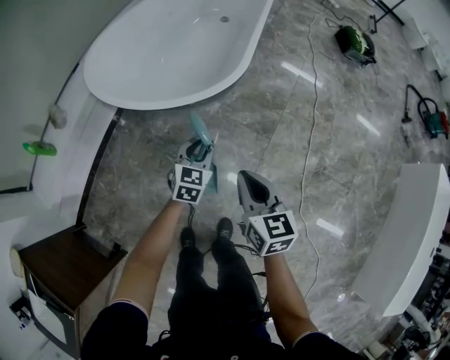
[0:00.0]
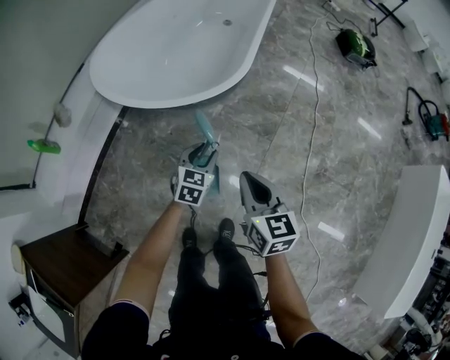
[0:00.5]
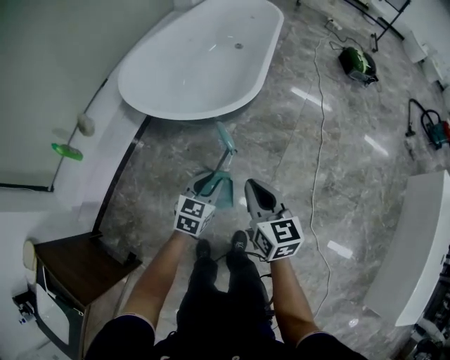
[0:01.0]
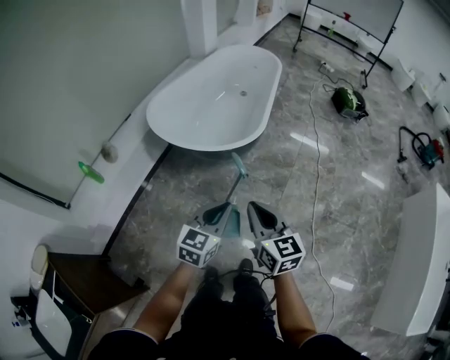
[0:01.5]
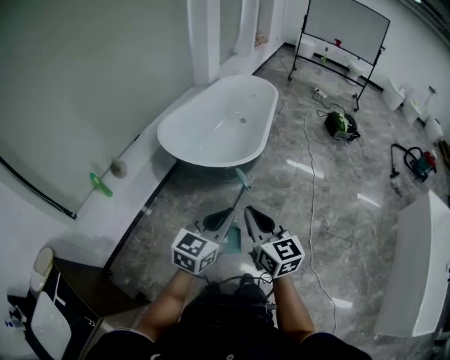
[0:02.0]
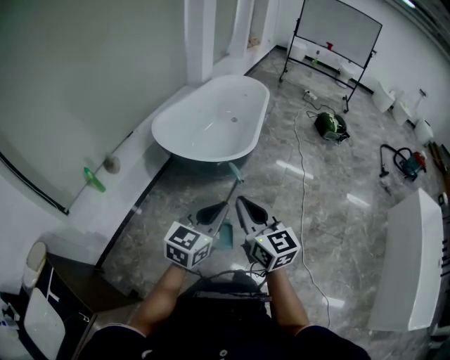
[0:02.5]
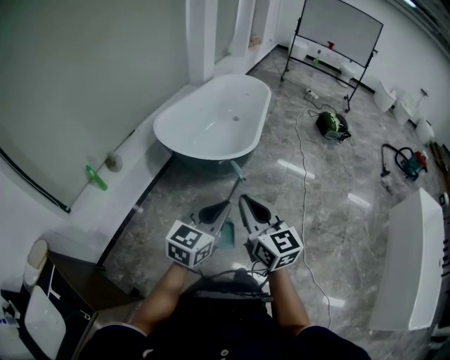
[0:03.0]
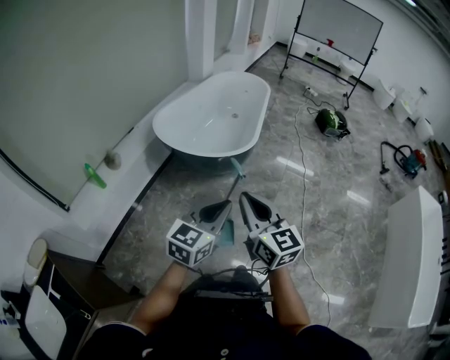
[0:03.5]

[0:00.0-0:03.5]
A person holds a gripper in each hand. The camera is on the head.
0:00.0 to 0:02.0: The left gripper is displaced upward and backward by approximately 50 cm, and swivels approximately 30 degrees; the right gripper shifts some 35 cm upward, backward and to the left, and rotates approximately 20 degrees.
0:02.0 to 0:03.5: The right gripper changes place by some 5 cm.

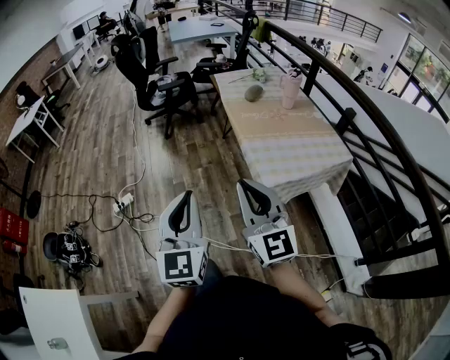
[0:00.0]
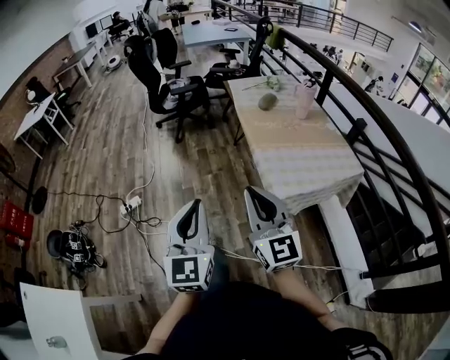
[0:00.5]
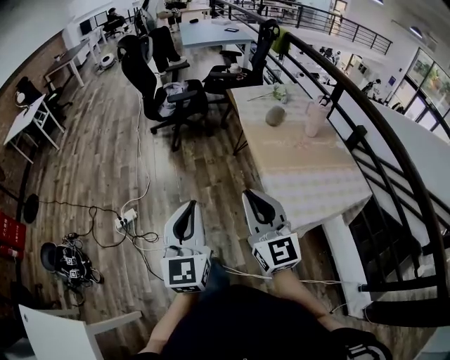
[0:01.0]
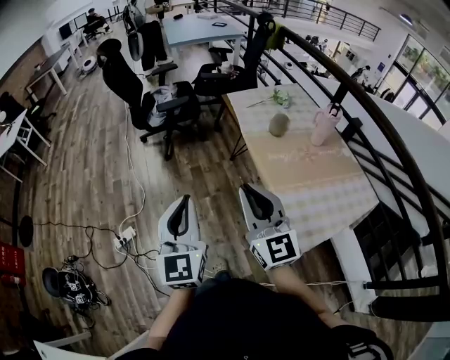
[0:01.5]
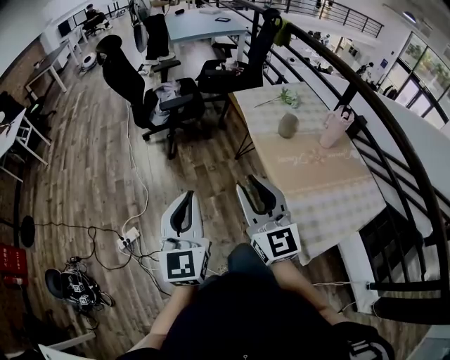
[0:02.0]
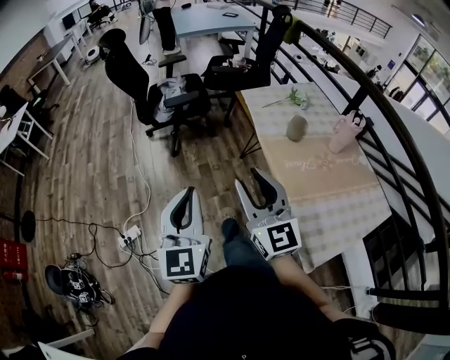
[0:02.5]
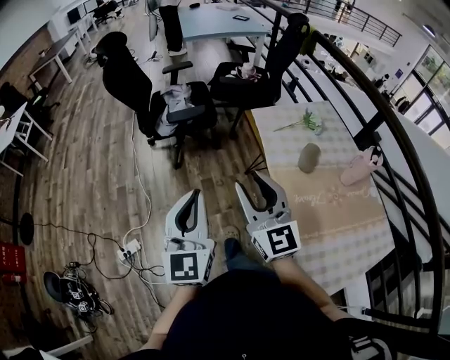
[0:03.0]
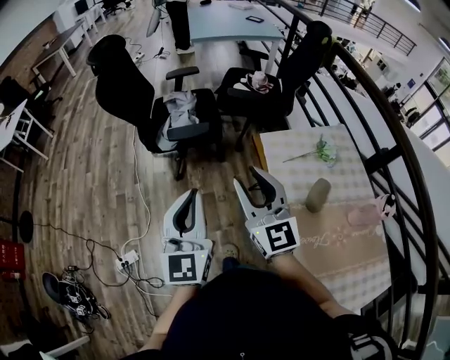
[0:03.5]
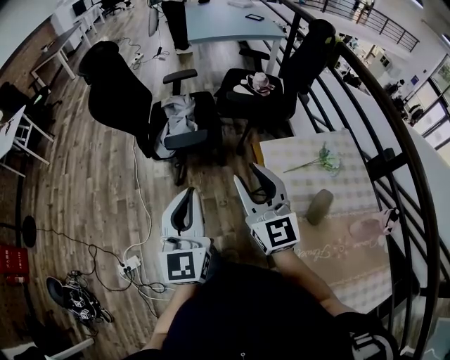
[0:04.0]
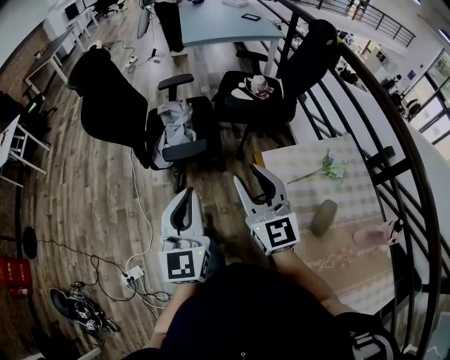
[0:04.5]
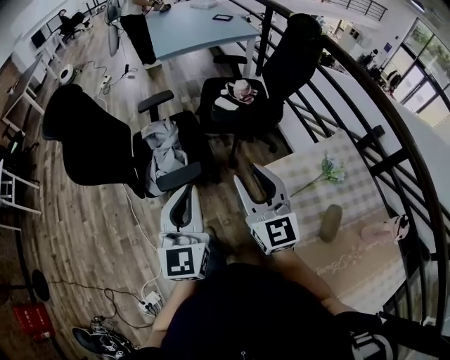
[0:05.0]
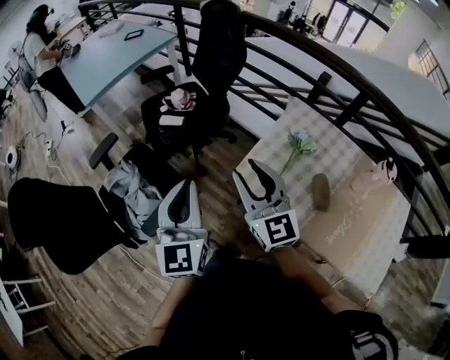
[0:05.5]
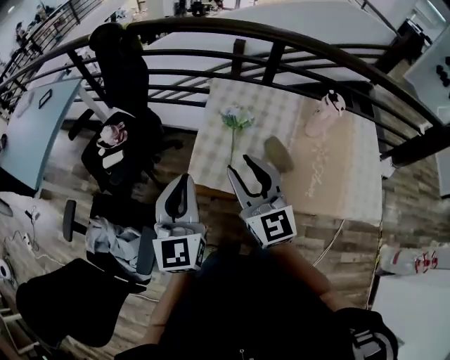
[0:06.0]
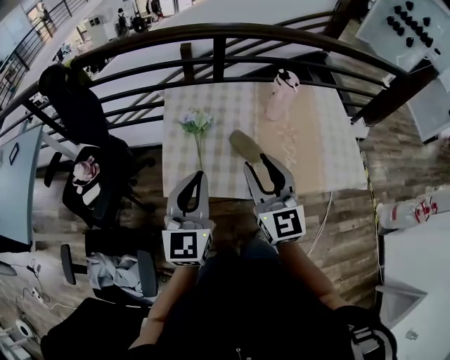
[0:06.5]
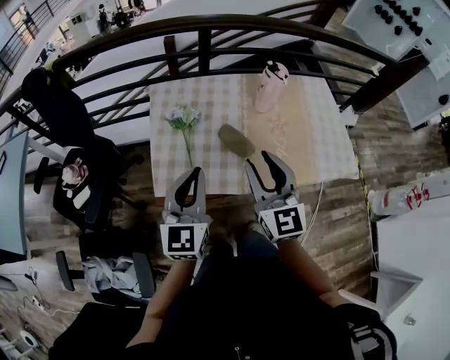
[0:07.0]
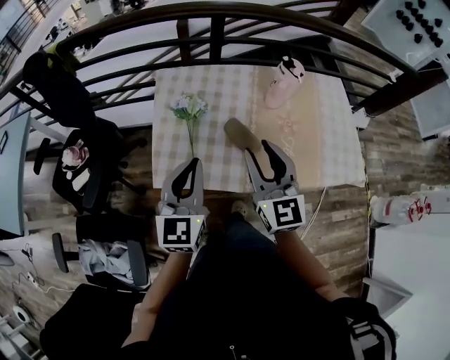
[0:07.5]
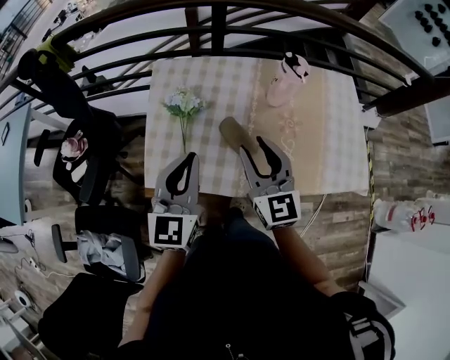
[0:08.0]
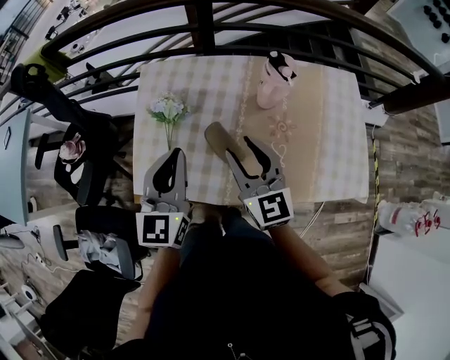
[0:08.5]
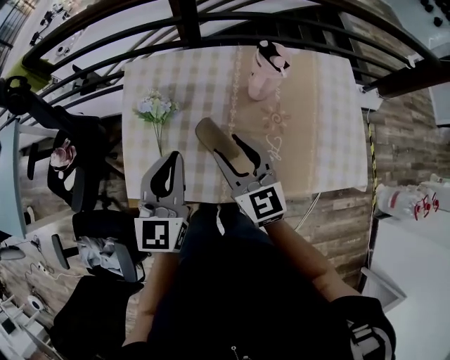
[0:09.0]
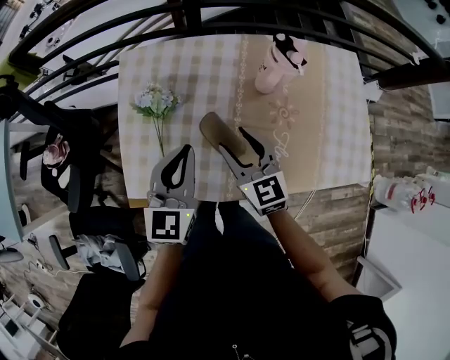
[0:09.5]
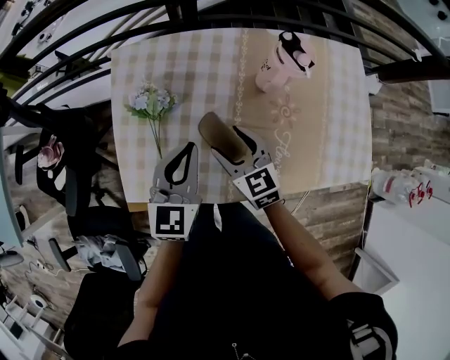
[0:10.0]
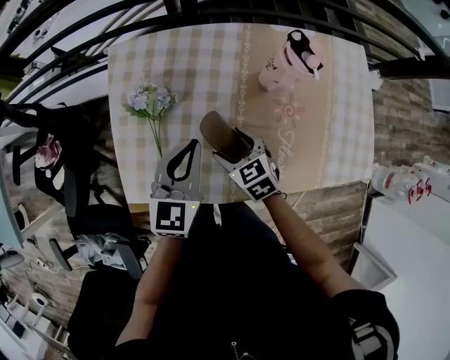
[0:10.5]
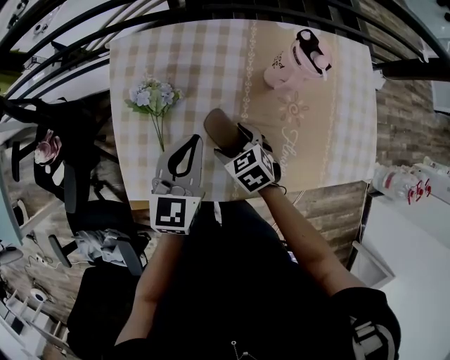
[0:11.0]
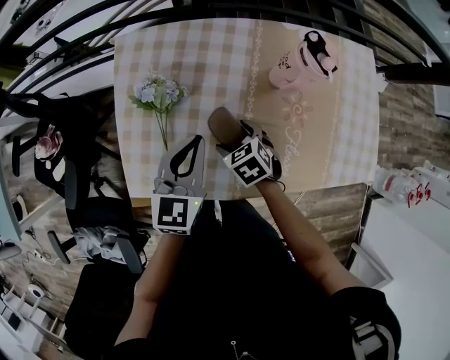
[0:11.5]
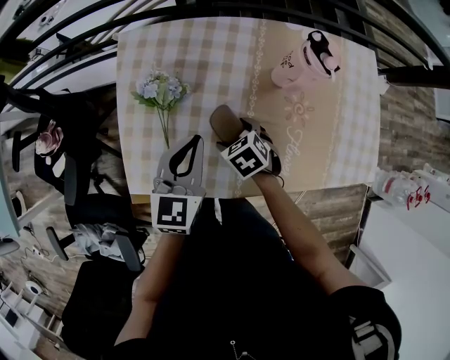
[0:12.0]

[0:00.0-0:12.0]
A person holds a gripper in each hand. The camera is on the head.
0:00.0 to 0:02.0: The two grippers go approximately 40 cm forward.
0:02.0 to 0:04.0: The pair of grippers is taken forward, roughly 40 cm.
0:04.0 to 0:06.0: The right gripper moves about 20 cm, and swivels roughly 70 degrees; the left gripper changes place by some 30 cm, and changes its angle by approximately 70 degrees.
0:06.0 to 0:08.0: The left gripper ends up about 20 cm from where it was, and rotates roughly 20 degrees; the right gripper shifts by roughly 20 cm.
0:08.0 to 0:10.0: The right gripper moves downward and forward, roughly 20 cm, rotates approximately 20 degrees, and opens. Meanwhile the left gripper is displaced downward, forward and to the right by some 15 cm.
0:10.0 to 0:12.0: The right gripper moves downward, approximately 10 cm, and points its fingers some 40 degrees further downward.

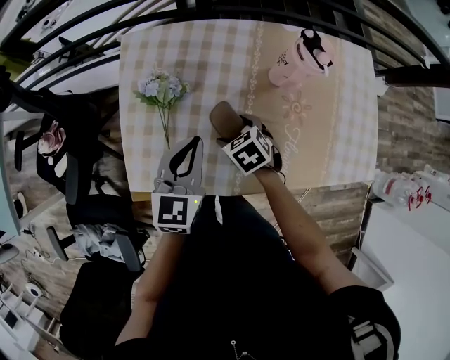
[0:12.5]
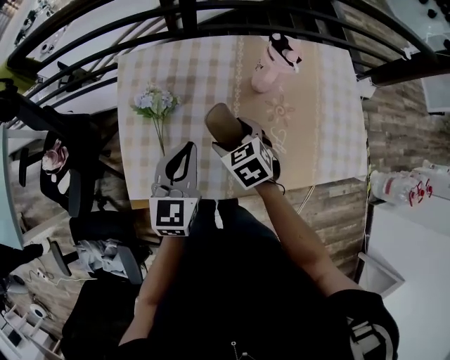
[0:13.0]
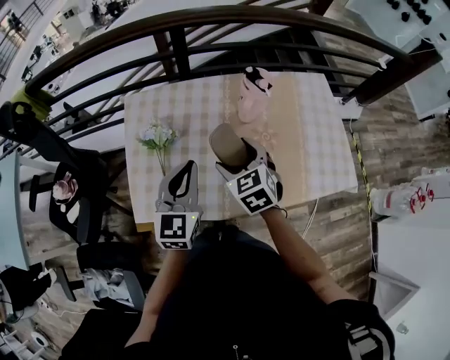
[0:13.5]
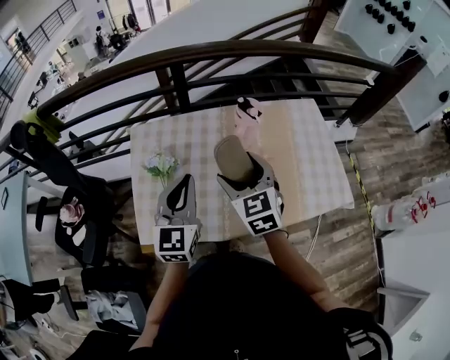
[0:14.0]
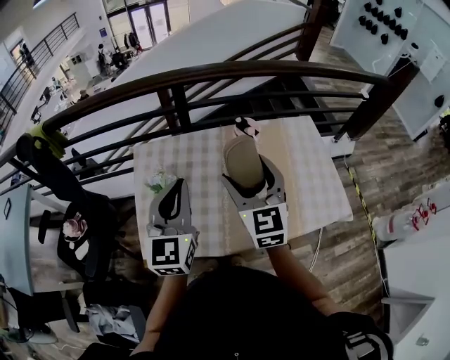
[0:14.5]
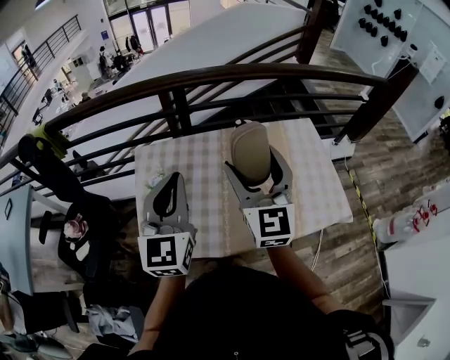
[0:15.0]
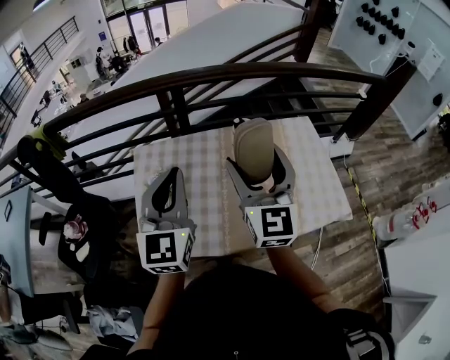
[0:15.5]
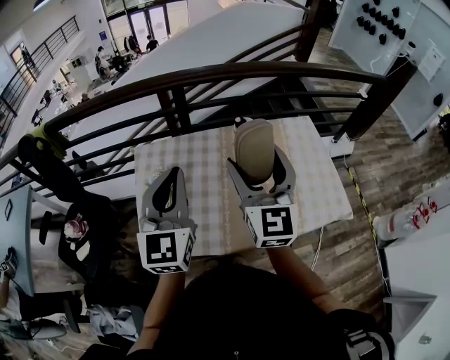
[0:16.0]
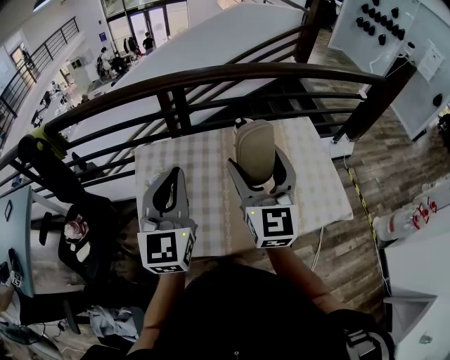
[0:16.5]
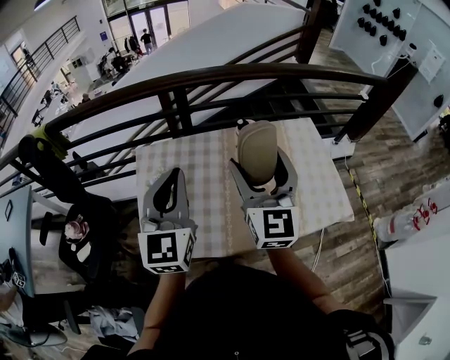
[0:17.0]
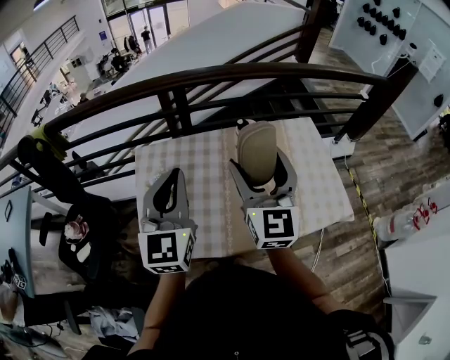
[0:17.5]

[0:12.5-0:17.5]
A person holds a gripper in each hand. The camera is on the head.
0:12.5 to 0:15.0: The right gripper goes roughly 40 cm upward, and points its fingers some 70 degrees further upward. The left gripper goes approximately 25 cm upward, and swivels approximately 30 degrees.
0:15.0 to 0:17.5: The grippers make only small movements.

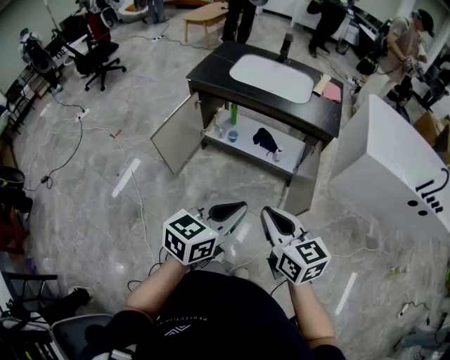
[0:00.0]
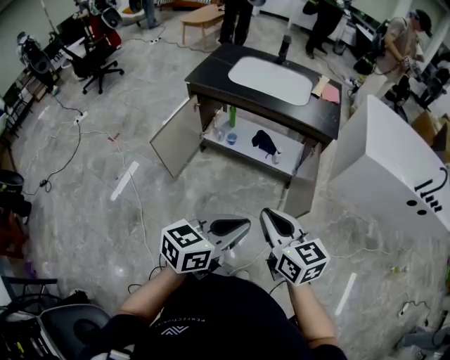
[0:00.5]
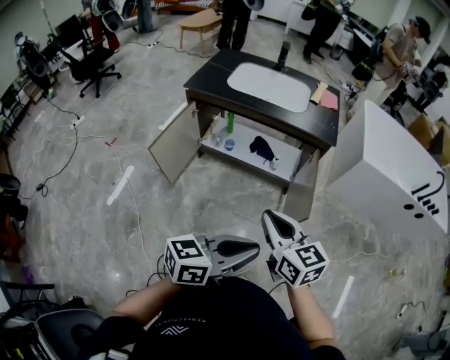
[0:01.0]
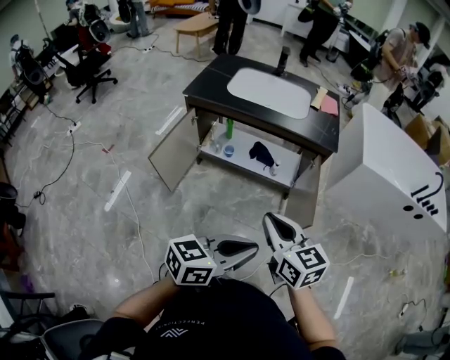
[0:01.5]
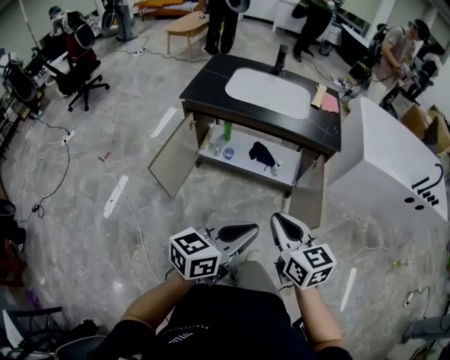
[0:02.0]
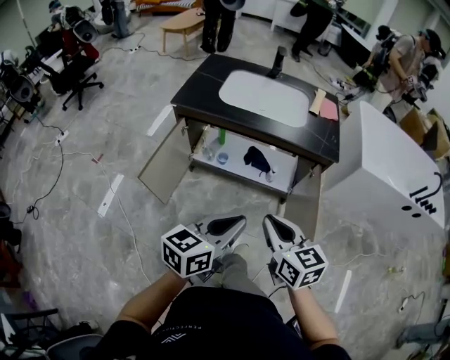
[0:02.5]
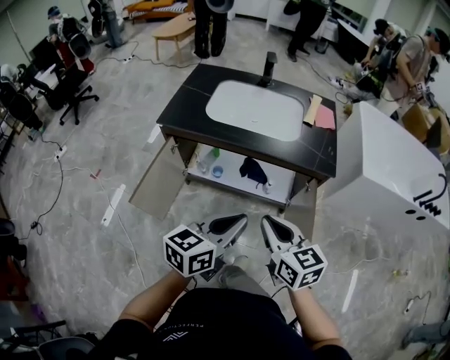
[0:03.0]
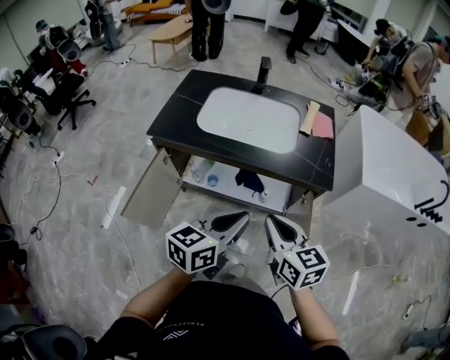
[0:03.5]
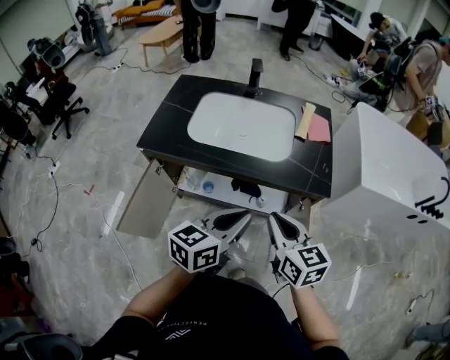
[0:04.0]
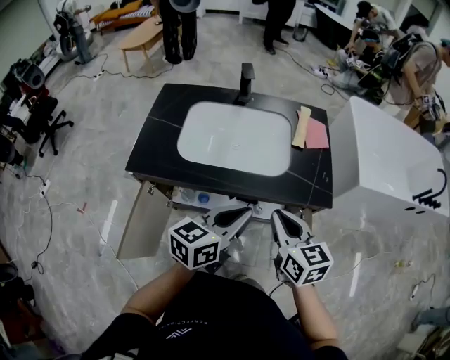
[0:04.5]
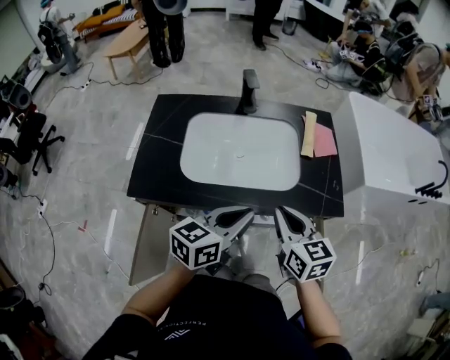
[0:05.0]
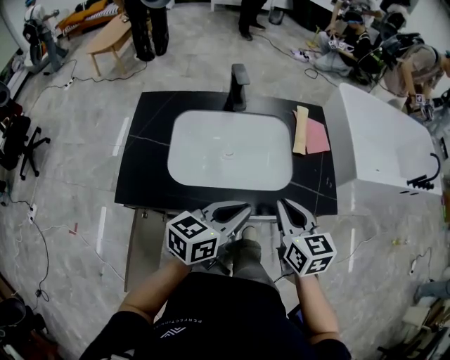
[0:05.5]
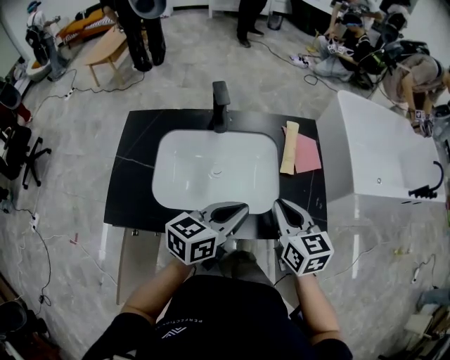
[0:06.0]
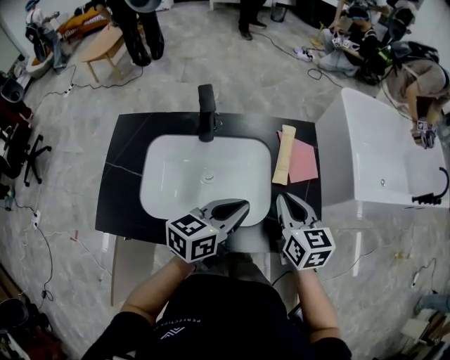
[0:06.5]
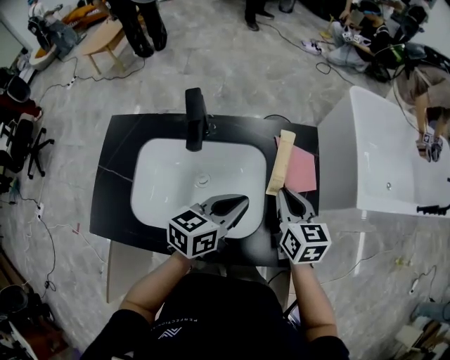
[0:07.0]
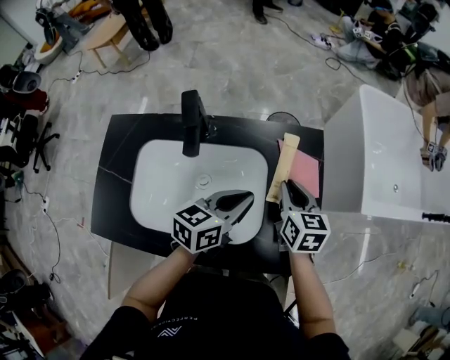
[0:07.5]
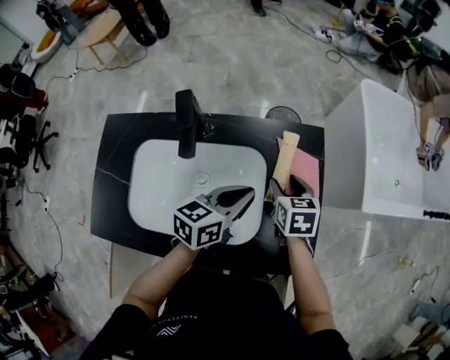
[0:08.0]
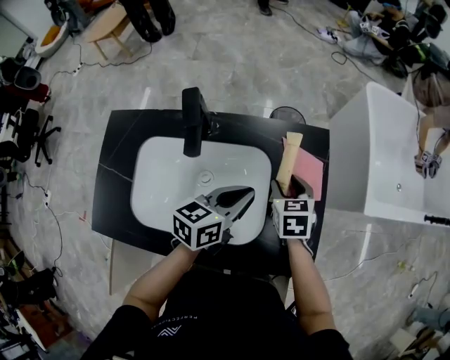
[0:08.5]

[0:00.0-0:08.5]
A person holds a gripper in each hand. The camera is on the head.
0:00.0 to 0:02.0: The left gripper moves about 5 cm backward and comes back. The right gripper shifts roughly 10 cm forward and to the left.
0:02.0 to 0:04.0: Both grippers move forward, some 30 cm.
0:04.0 to 0:06.5: Both grippers move forward, about 30 cm.
0:06.5 to 0:08.5: The left gripper heads forward, covering roughly 10 cm. Meanwhile the right gripper goes about 20 cm forward and downward, rotates some 30 degrees, and opens up.
